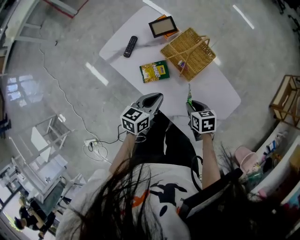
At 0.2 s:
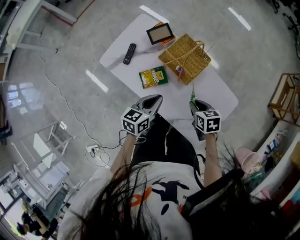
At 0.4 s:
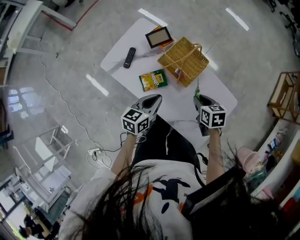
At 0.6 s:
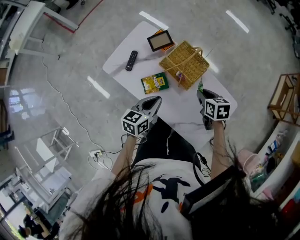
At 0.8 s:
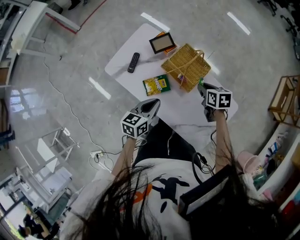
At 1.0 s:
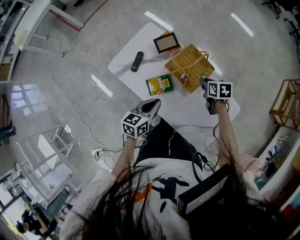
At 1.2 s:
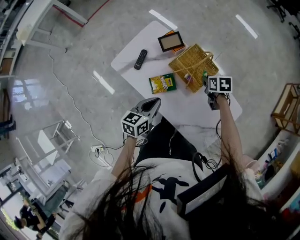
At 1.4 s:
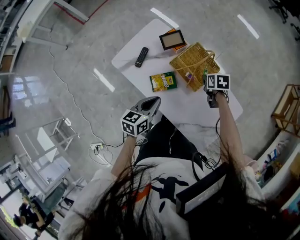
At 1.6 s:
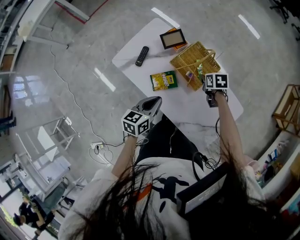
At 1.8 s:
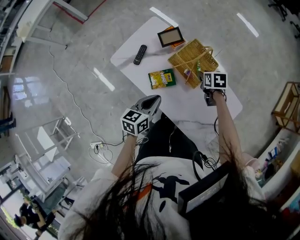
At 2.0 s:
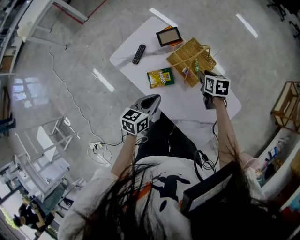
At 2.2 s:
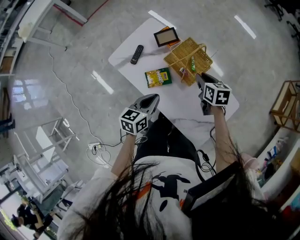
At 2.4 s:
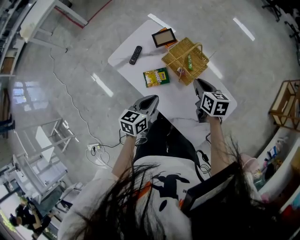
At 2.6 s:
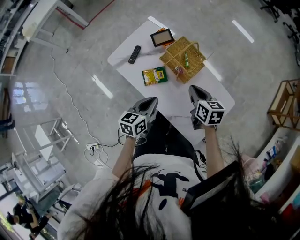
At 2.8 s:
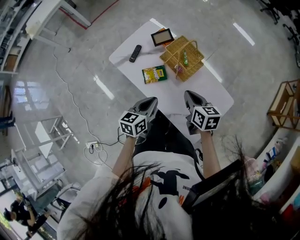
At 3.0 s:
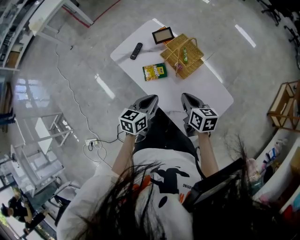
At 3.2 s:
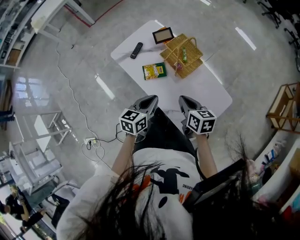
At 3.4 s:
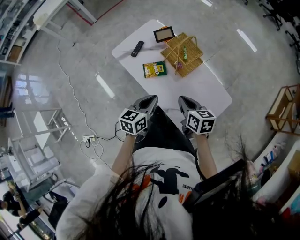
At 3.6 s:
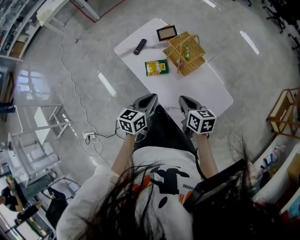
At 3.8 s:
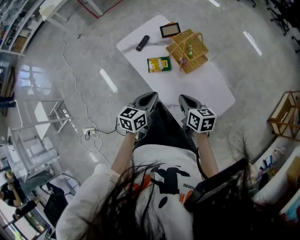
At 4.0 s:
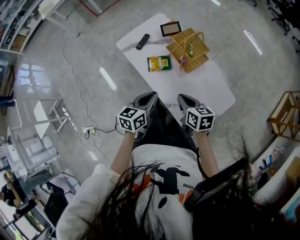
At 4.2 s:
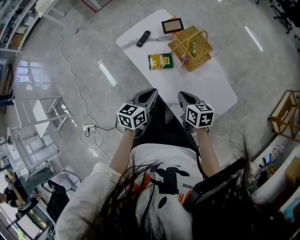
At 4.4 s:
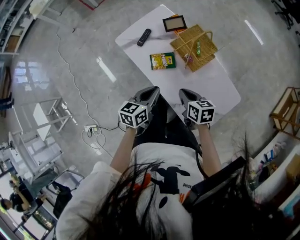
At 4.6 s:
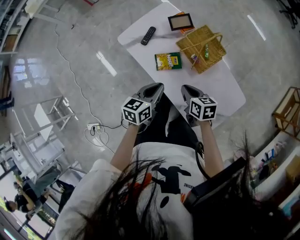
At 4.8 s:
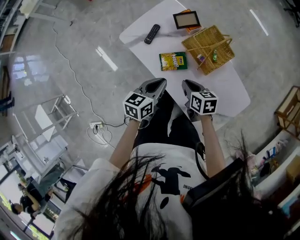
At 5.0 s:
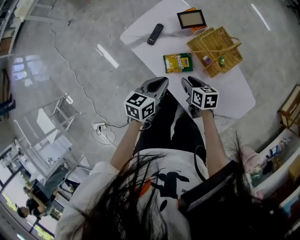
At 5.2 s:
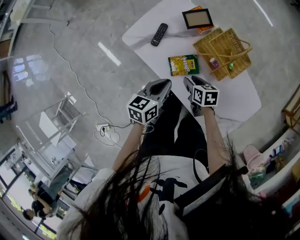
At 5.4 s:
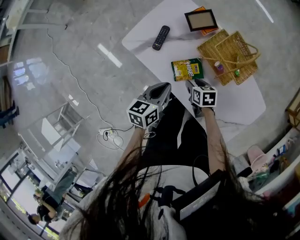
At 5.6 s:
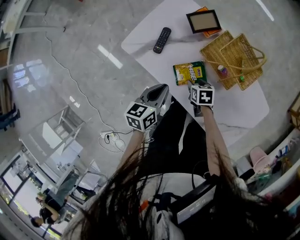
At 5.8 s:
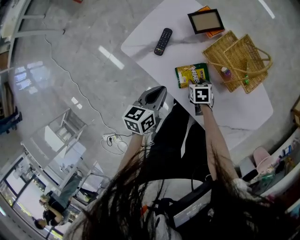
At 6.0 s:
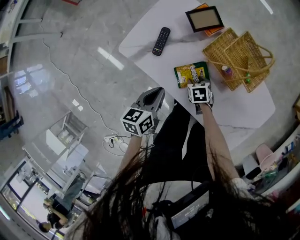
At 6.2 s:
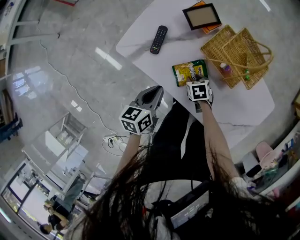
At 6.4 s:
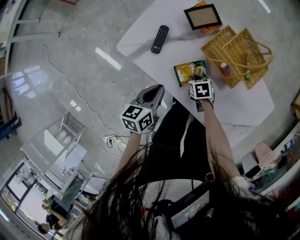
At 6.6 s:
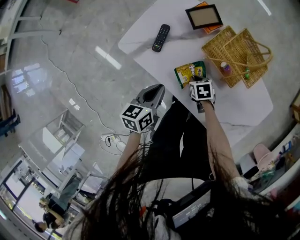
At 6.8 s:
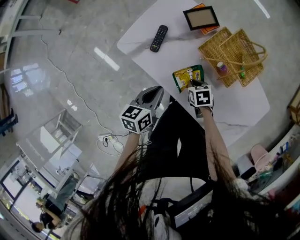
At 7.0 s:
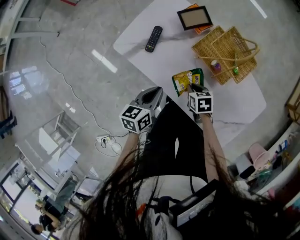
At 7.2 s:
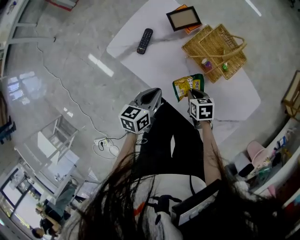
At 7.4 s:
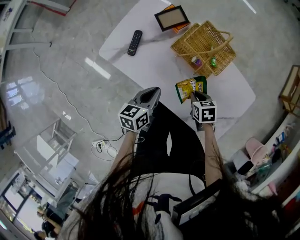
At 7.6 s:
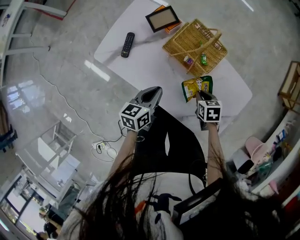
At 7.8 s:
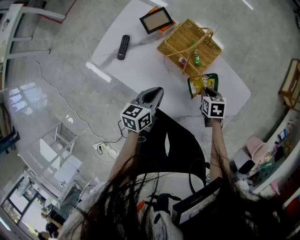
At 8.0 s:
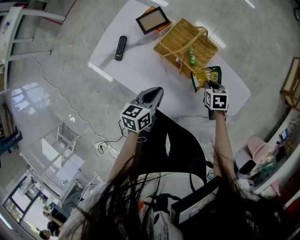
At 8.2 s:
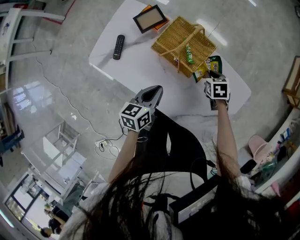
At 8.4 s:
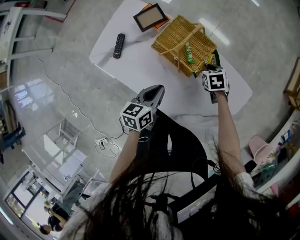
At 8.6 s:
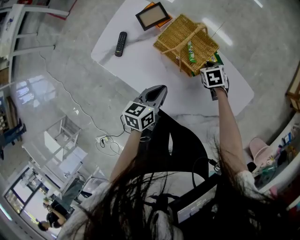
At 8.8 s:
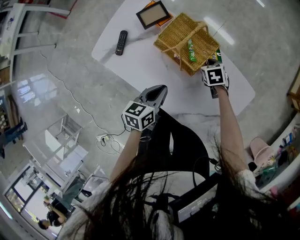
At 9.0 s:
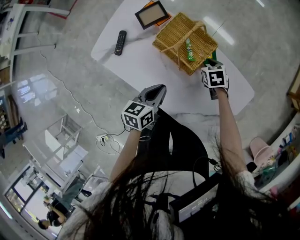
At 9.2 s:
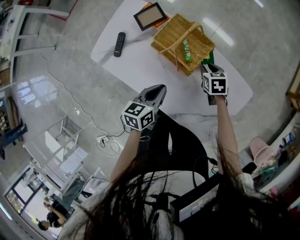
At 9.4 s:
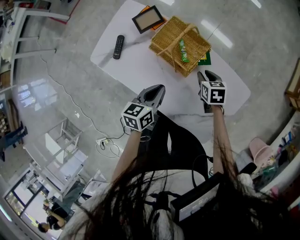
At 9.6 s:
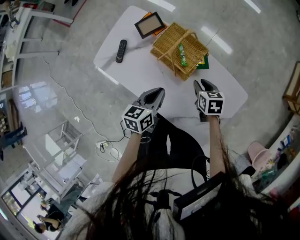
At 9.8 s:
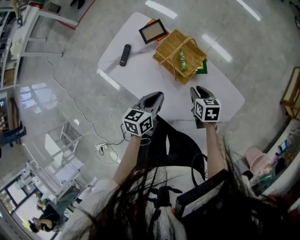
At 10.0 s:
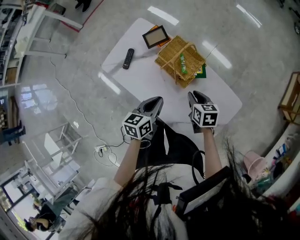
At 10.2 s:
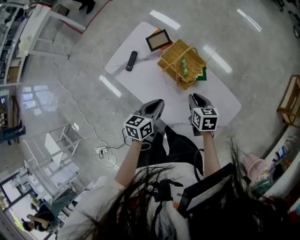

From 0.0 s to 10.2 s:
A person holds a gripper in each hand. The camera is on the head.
From 0.0 s to 1.4 s: The right gripper is displaced forward by some 20 cm. The left gripper moves to the left, roughly 5 cm.
From 1.4 s to 3.0 s: The right gripper goes about 30 cm backward and upward, and points its fingers some 30 degrees further upward; the left gripper heads backward, to the right and upward, covering approximately 15 cm.
From 3.0 s to 4.4 s: The left gripper shifts by about 5 cm. The right gripper shifts roughly 10 cm downward and to the left.
From 4.4 s to 5.8 s: The right gripper travels downward and forward by approximately 35 cm, angles its fingers downward, by some 30 degrees, and opens its fingers, while the left gripper goes some 25 cm forward, downward and to the left.
From 5.8 s to 7.2 s: The right gripper travels upward, backward and to the right by approximately 15 cm, and closes its fingers. The left gripper is displaced to the right by some 5 cm.
From 7.2 s to 8.8 s: The left gripper moves to the right, approximately 15 cm. Meanwhile the right gripper is displaced to the right and forward by about 25 cm.
From 8.8 s to 10.2 s: The left gripper goes about 10 cm upward; the right gripper heads upward and backward, covering roughly 20 cm, and rotates about 30 degrees.

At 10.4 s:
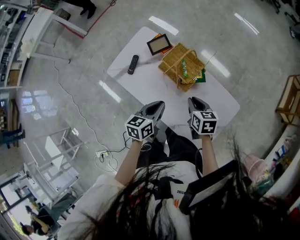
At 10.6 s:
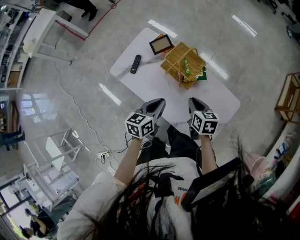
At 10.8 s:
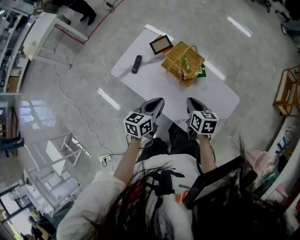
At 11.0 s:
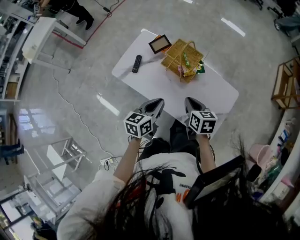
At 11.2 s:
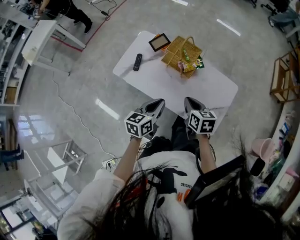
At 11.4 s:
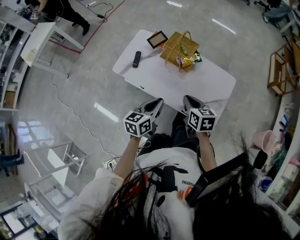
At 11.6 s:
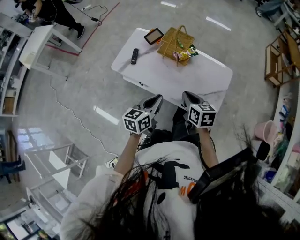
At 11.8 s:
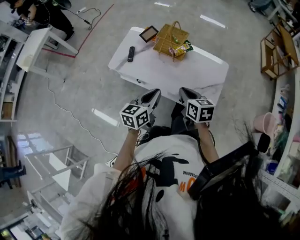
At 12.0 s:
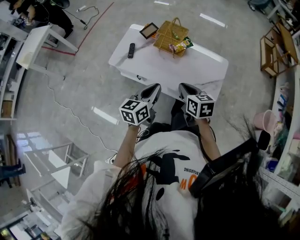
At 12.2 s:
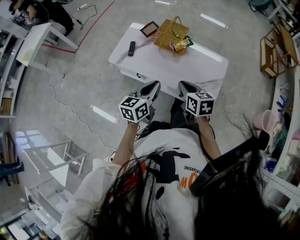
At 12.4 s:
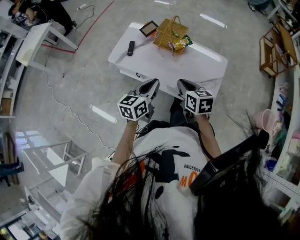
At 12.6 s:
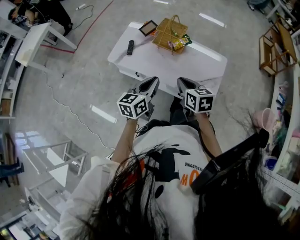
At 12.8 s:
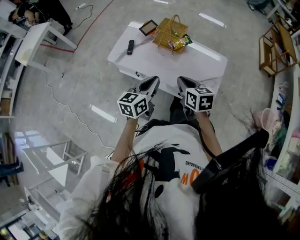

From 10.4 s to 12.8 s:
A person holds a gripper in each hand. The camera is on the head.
From 10.4 s to 11.6 s: The right gripper goes about 25 cm backward and upward, while the left gripper goes approximately 20 cm backward.
From 11.6 s to 12.8 s: The grippers move only a little.

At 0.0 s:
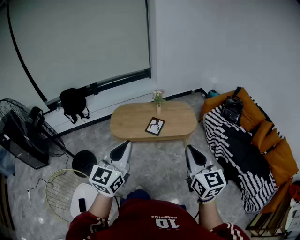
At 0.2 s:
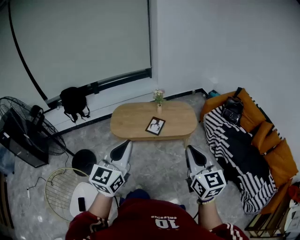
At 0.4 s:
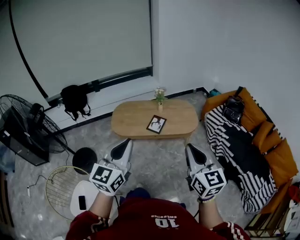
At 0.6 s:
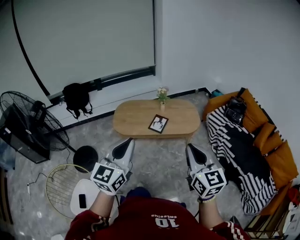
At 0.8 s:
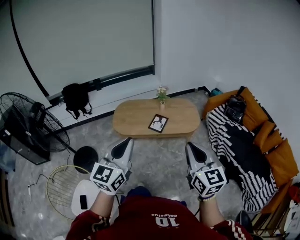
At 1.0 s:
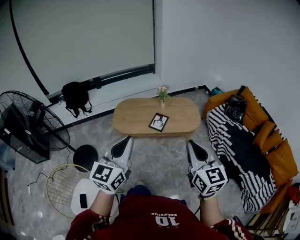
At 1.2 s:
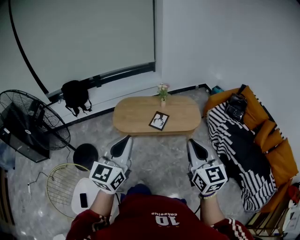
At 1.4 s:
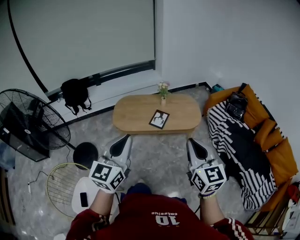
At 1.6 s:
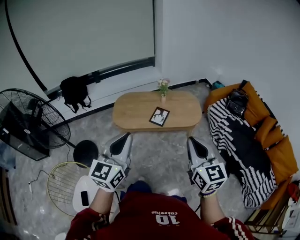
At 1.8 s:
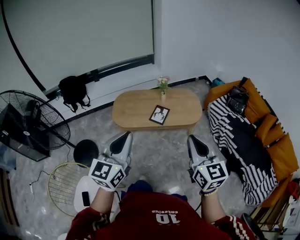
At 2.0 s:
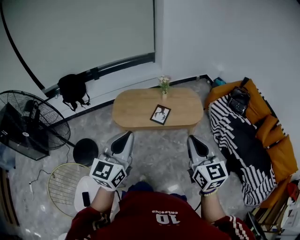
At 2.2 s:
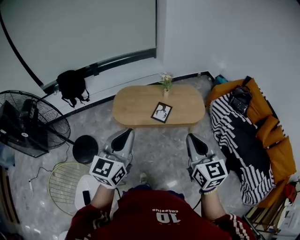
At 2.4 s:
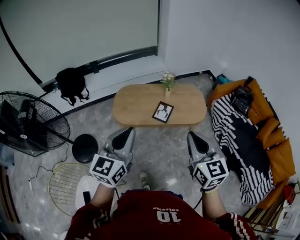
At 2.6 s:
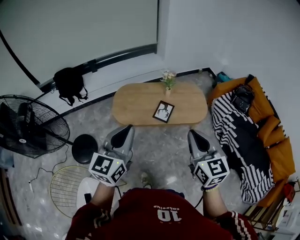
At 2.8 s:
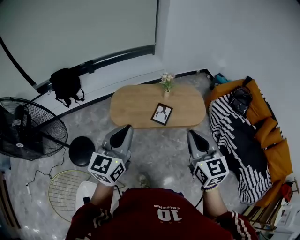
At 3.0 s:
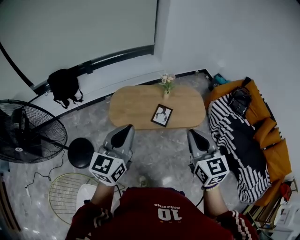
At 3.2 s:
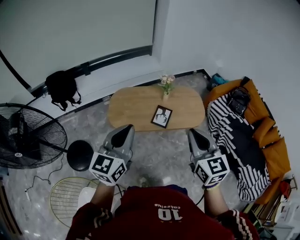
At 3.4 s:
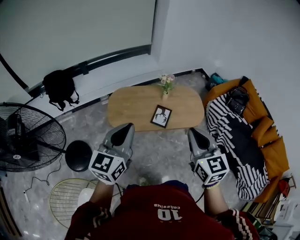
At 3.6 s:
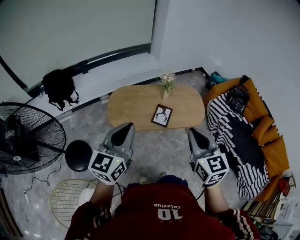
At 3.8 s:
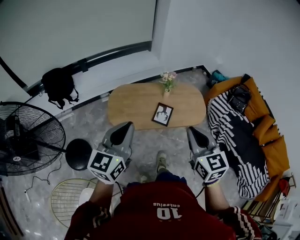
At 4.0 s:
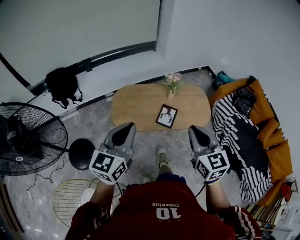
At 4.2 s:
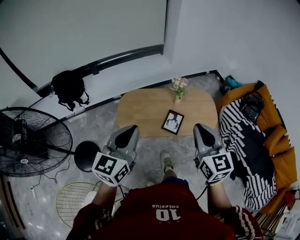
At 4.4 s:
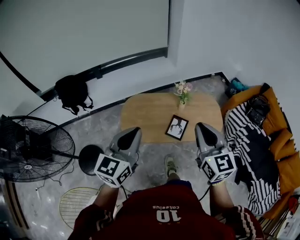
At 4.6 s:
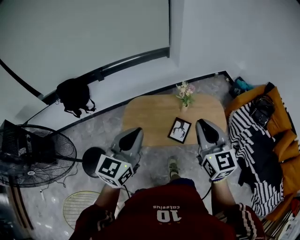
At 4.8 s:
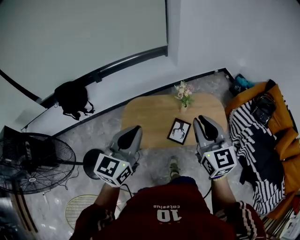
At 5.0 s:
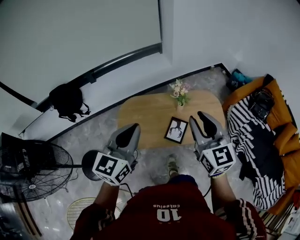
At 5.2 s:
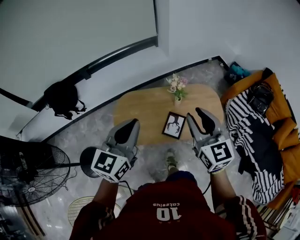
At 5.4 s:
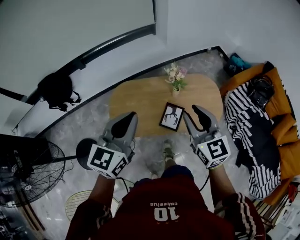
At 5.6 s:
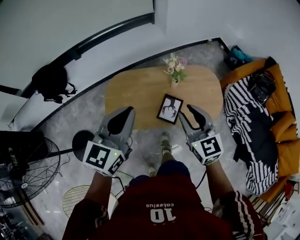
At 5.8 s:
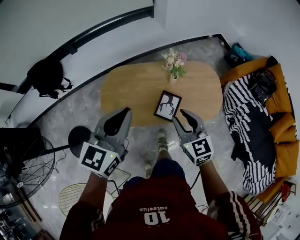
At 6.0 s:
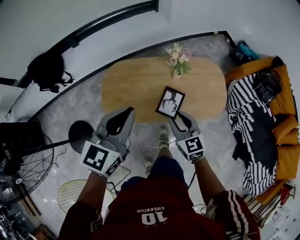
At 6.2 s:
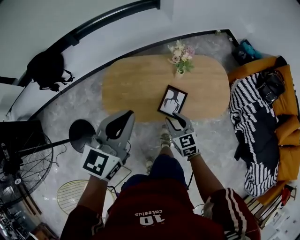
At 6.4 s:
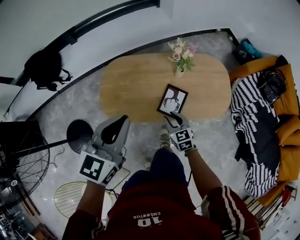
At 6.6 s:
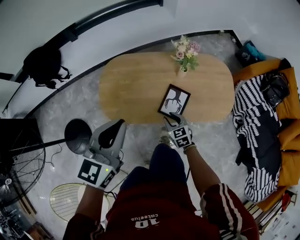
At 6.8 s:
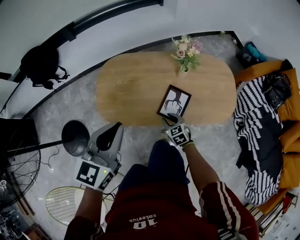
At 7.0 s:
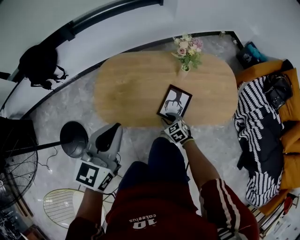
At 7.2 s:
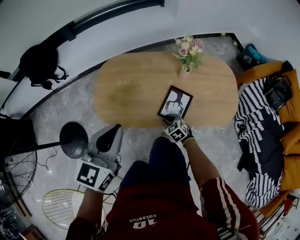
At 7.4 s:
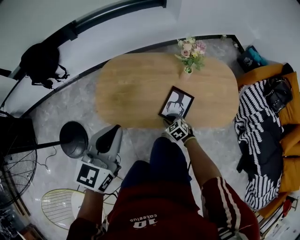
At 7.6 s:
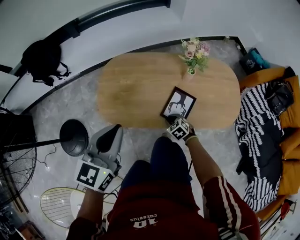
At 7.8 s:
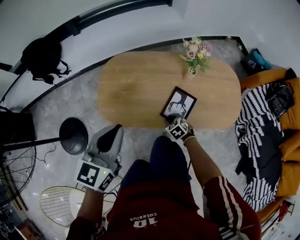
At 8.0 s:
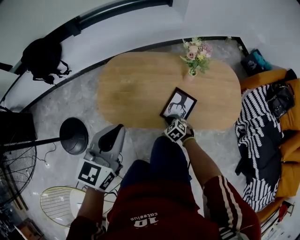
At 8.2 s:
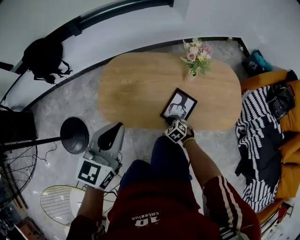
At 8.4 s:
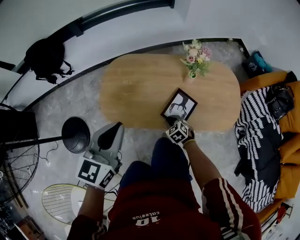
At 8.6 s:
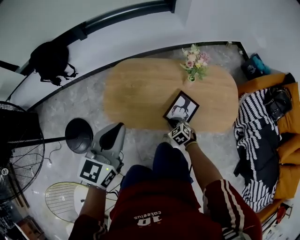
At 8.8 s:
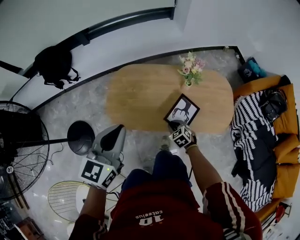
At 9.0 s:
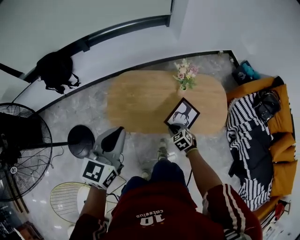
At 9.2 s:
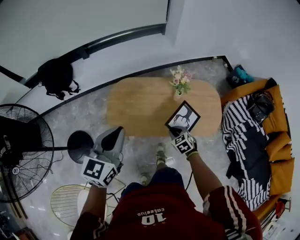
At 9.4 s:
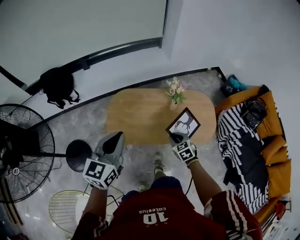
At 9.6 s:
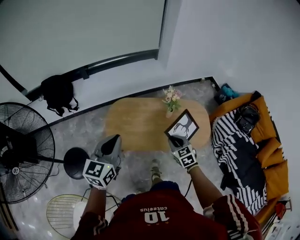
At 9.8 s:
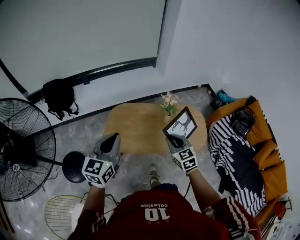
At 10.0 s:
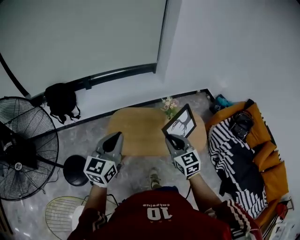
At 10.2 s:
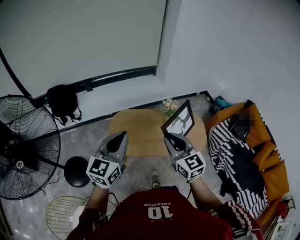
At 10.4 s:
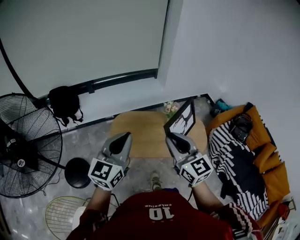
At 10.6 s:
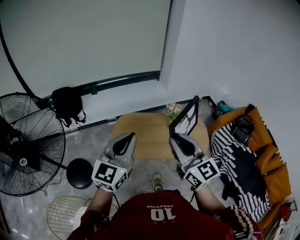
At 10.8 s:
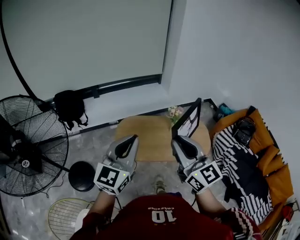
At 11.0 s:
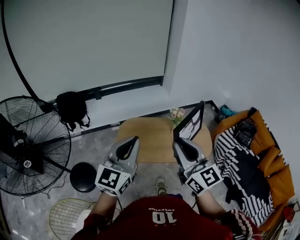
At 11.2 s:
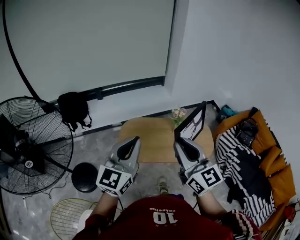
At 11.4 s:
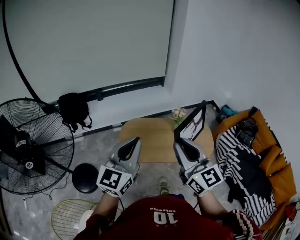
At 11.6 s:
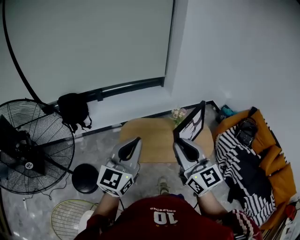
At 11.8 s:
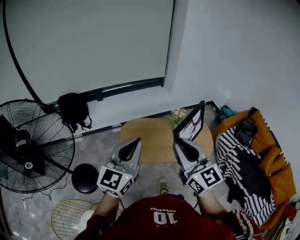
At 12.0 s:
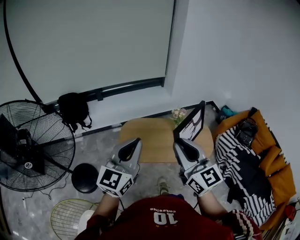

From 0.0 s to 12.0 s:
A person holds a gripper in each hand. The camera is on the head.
From 0.0 s to 1.6 s: The right gripper moves roughly 5 cm.
From 1.6 s to 3.0 s: Both grippers move forward and to the left, roughly 20 cm.
From 3.0 s to 4.4 s: Both grippers move forward, about 15 cm.
From 4.4 s to 6.0 s: The left gripper goes roughly 20 cm forward and downward. The right gripper travels downward and forward by roughly 30 cm, and opens up.
From 6.0 s to 7.6 s: The right gripper travels downward by approximately 40 cm, and tips its fingers downward by about 40 degrees; the left gripper is displaced downward and to the left by roughly 20 cm.
From 7.6 s to 9.0 s: Both grippers move upward, roughly 15 cm.
From 9.0 s to 10.4 s: The left gripper is displaced upward and backward by roughly 20 cm, and changes its angle by some 20 degrees. The right gripper shifts roughly 50 cm upward, and points its fingers about 50 degrees further upward.
From 10.4 s to 12.0 s: The left gripper moves approximately 5 cm. Meanwhile the right gripper heads upward and backward, covering about 10 cm.
